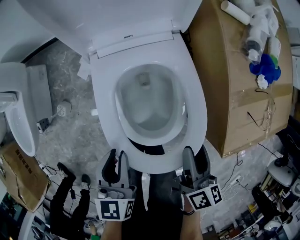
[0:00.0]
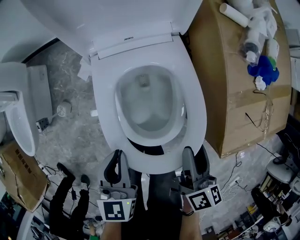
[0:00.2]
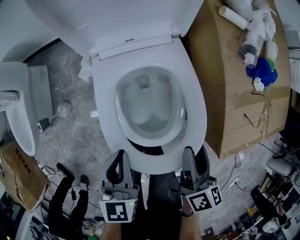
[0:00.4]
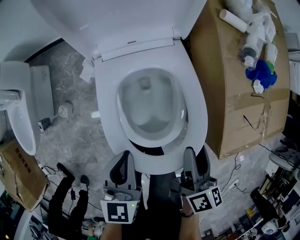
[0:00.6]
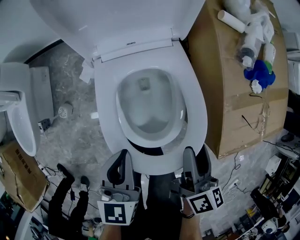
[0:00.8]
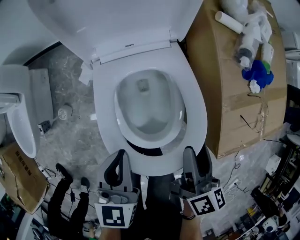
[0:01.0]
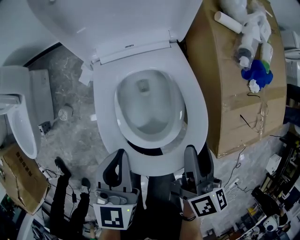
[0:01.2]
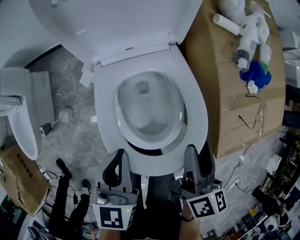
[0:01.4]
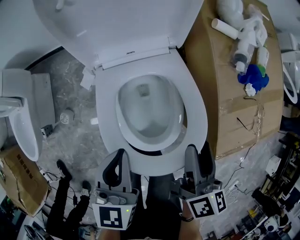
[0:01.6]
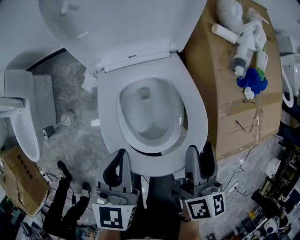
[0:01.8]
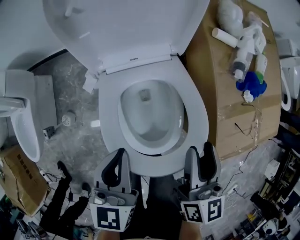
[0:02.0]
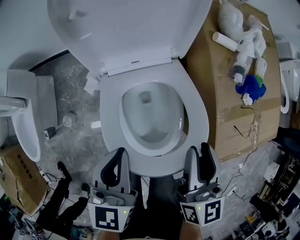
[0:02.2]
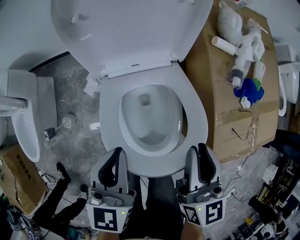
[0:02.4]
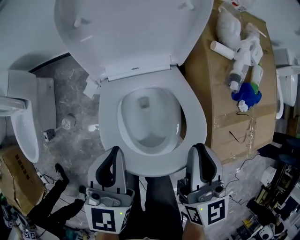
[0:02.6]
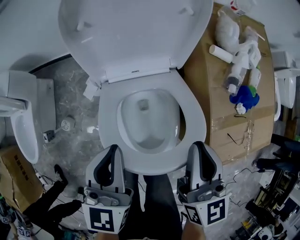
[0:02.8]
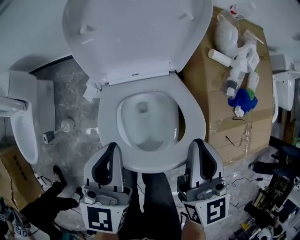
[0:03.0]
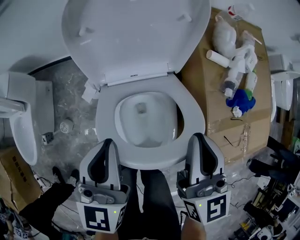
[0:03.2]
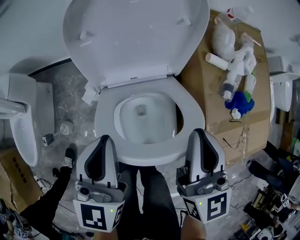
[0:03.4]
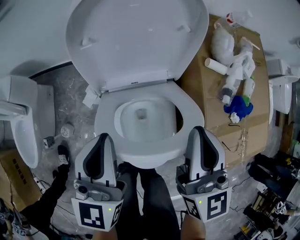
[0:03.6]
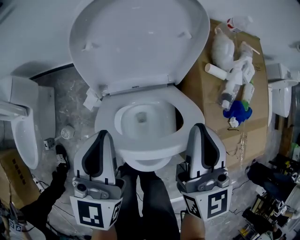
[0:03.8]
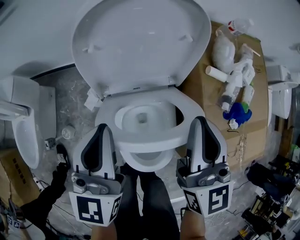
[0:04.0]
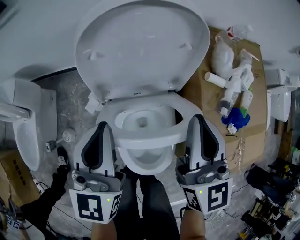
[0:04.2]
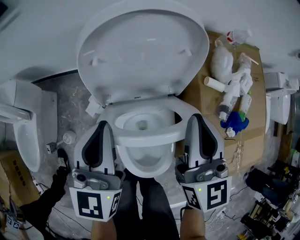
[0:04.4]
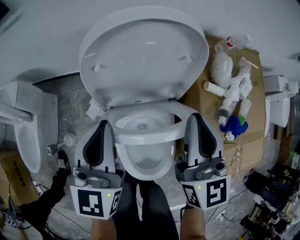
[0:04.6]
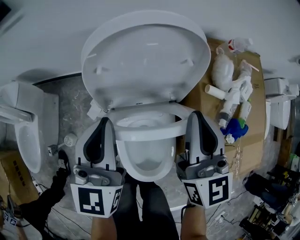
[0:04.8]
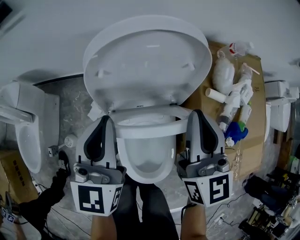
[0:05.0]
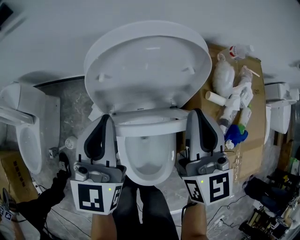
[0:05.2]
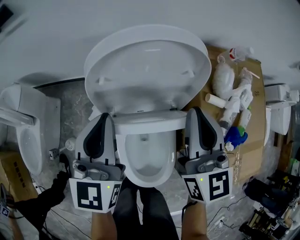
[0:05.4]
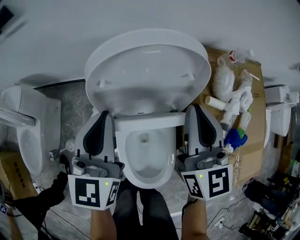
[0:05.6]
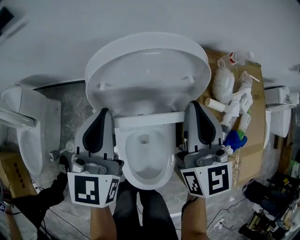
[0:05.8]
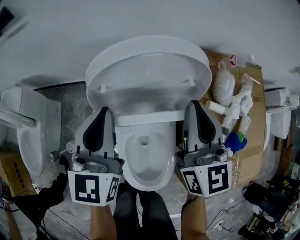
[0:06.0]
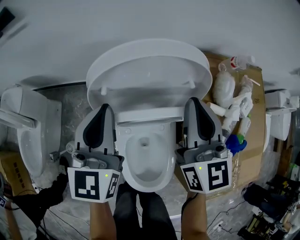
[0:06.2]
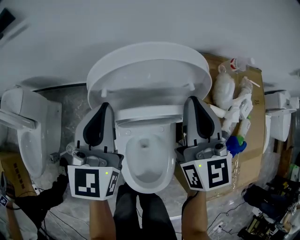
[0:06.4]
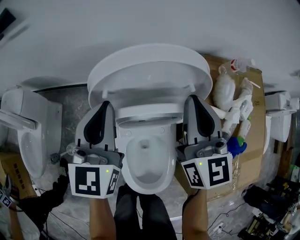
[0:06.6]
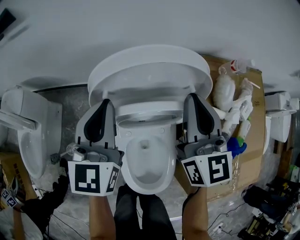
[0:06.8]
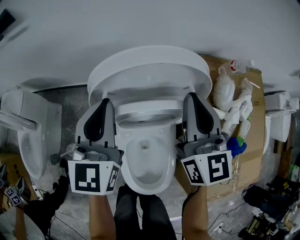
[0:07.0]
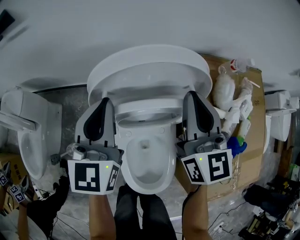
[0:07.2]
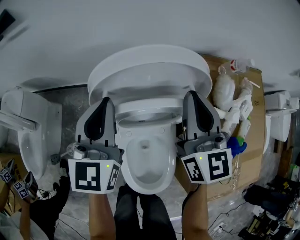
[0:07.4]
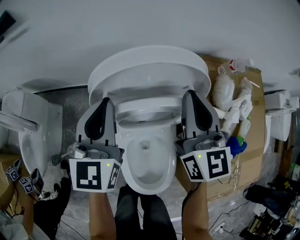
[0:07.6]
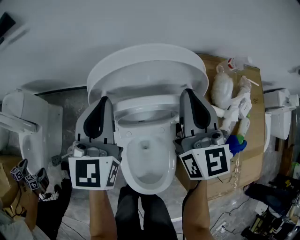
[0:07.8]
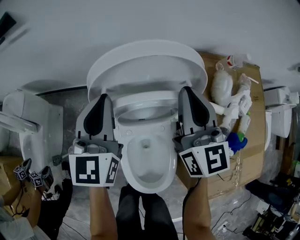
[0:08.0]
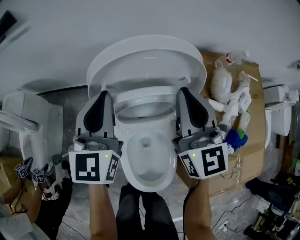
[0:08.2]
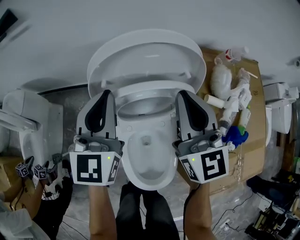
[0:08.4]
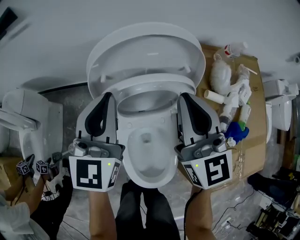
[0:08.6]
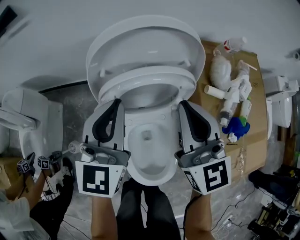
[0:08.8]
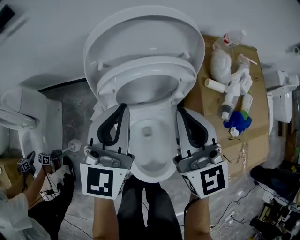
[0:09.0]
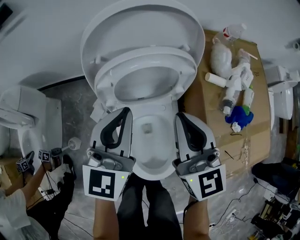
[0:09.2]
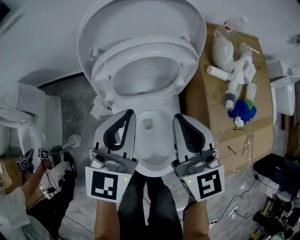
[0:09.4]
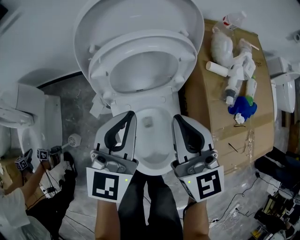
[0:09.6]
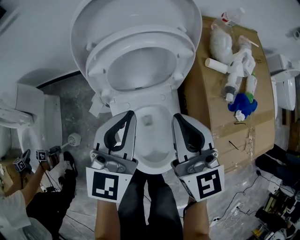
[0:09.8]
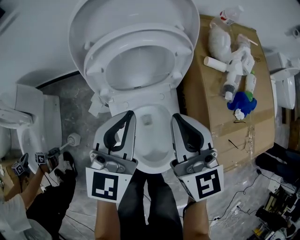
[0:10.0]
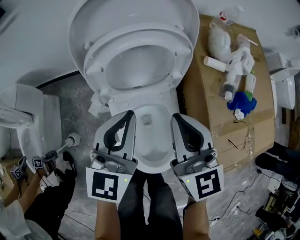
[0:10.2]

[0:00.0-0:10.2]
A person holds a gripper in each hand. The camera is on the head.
0:00.0 to 0:01.4: Both grippers move upward and forward, about 10 cm.
0:01.4 to 0:03.0: The left gripper goes approximately 10 cm upward and forward, while the right gripper travels upward, forward and to the left by approximately 15 cm, changes its angle by approximately 40 degrees, and closes its fingers.
0:03.0 to 0:04.4: Both grippers travel together forward and upward, some 15 cm.
0:04.4 to 0:05.8: Both grippers move forward, roughly 10 cm.
0:05.8 to 0:07.2: The grippers move only a little.
0:07.2 to 0:08.8: The grippers both shift backward by roughly 10 cm.
0:08.8 to 0:10.2: Both grippers travel together backward and downward, some 10 cm.

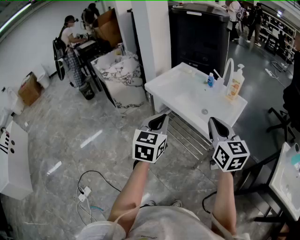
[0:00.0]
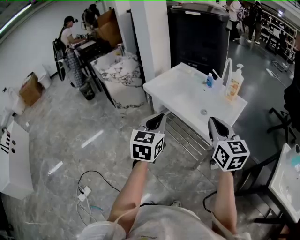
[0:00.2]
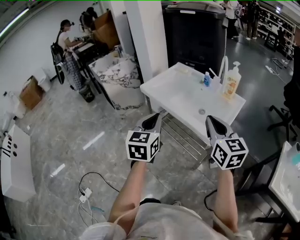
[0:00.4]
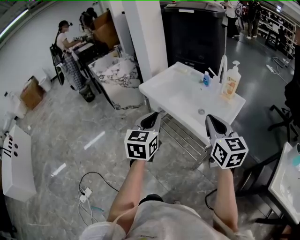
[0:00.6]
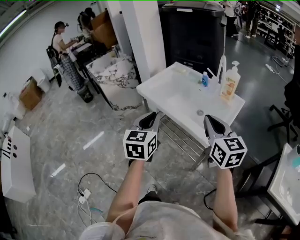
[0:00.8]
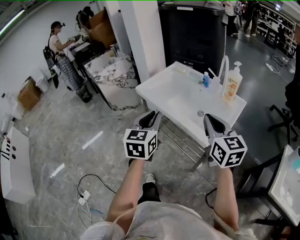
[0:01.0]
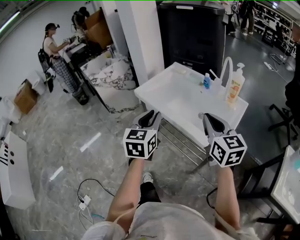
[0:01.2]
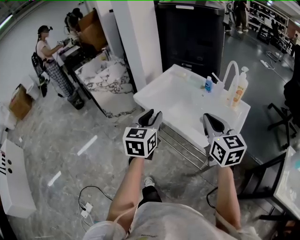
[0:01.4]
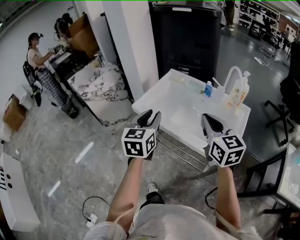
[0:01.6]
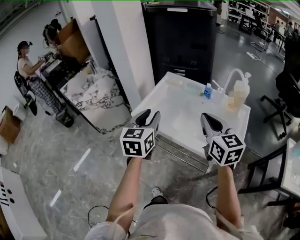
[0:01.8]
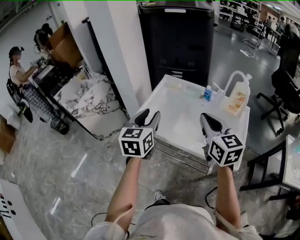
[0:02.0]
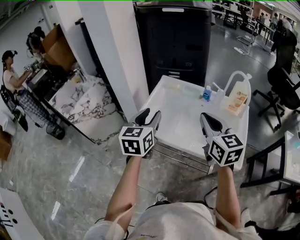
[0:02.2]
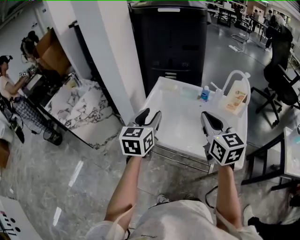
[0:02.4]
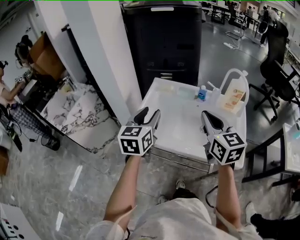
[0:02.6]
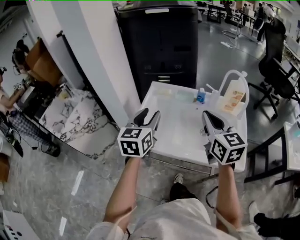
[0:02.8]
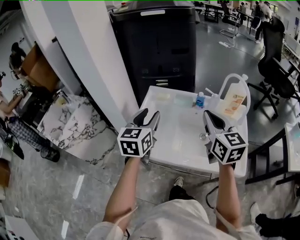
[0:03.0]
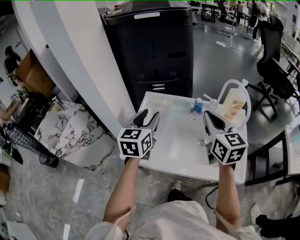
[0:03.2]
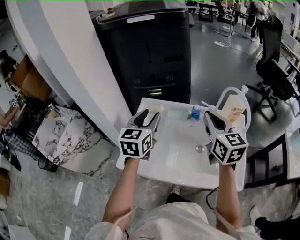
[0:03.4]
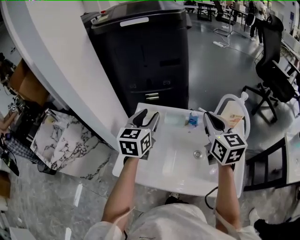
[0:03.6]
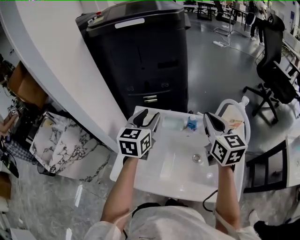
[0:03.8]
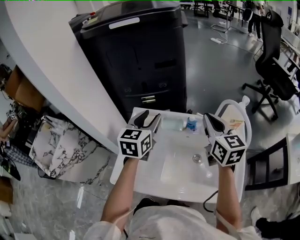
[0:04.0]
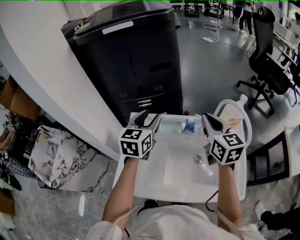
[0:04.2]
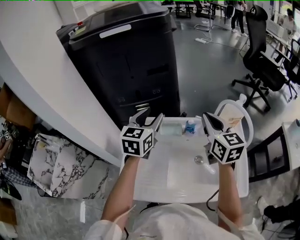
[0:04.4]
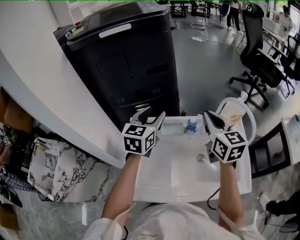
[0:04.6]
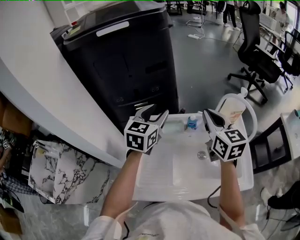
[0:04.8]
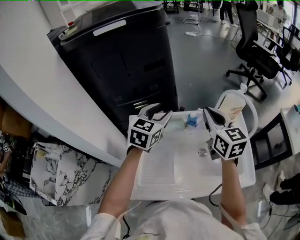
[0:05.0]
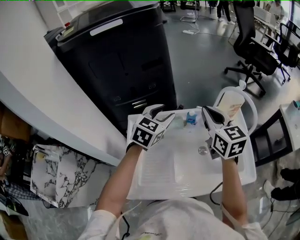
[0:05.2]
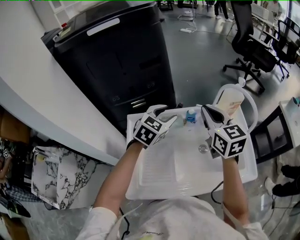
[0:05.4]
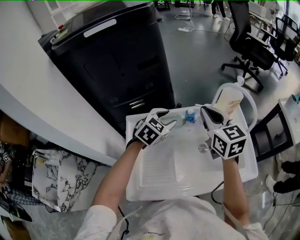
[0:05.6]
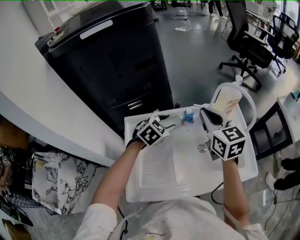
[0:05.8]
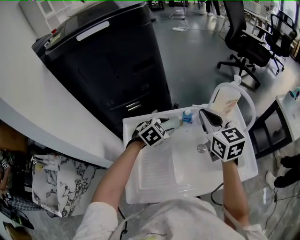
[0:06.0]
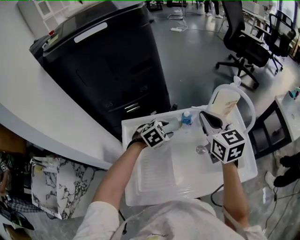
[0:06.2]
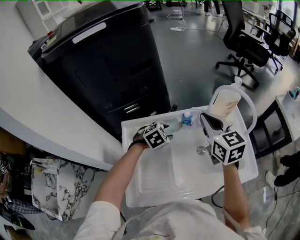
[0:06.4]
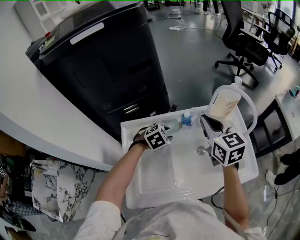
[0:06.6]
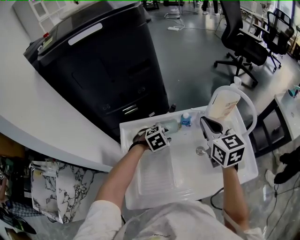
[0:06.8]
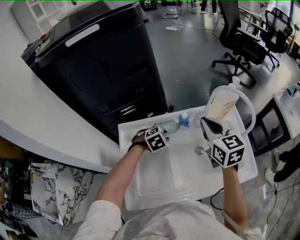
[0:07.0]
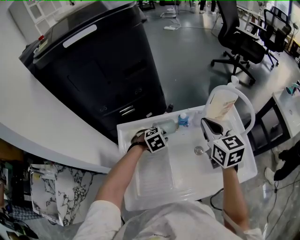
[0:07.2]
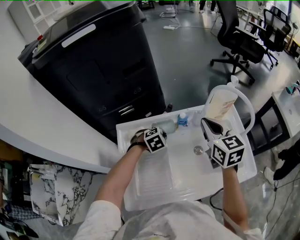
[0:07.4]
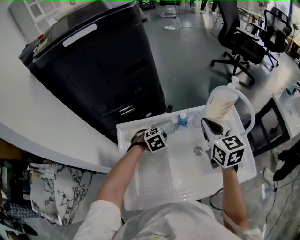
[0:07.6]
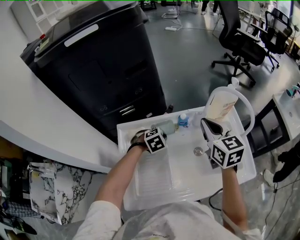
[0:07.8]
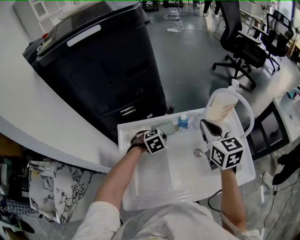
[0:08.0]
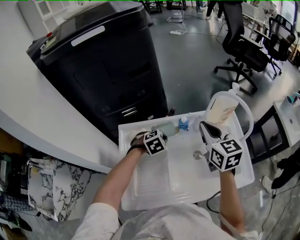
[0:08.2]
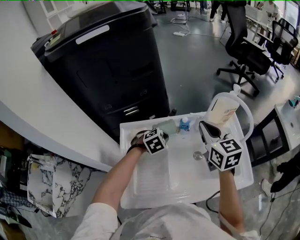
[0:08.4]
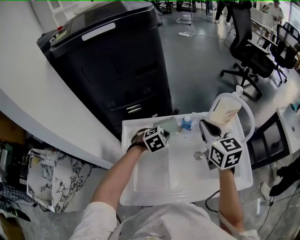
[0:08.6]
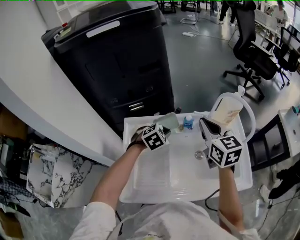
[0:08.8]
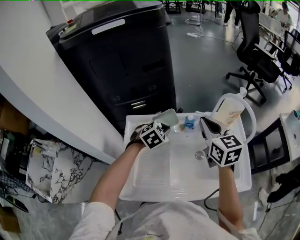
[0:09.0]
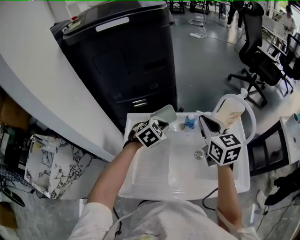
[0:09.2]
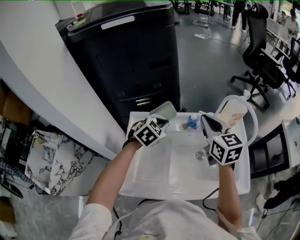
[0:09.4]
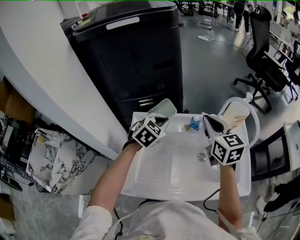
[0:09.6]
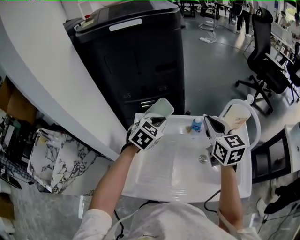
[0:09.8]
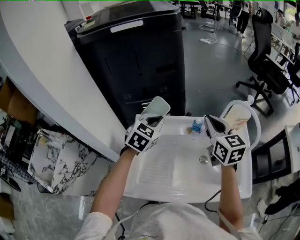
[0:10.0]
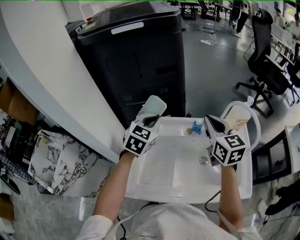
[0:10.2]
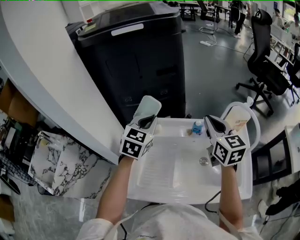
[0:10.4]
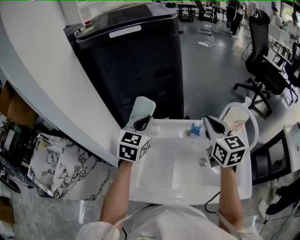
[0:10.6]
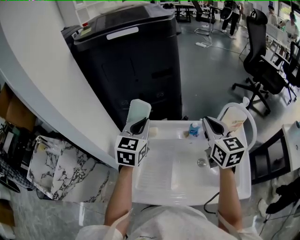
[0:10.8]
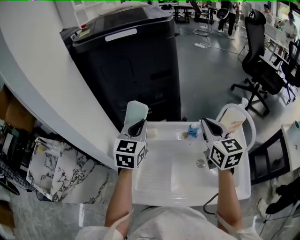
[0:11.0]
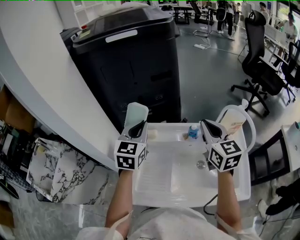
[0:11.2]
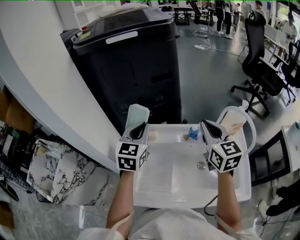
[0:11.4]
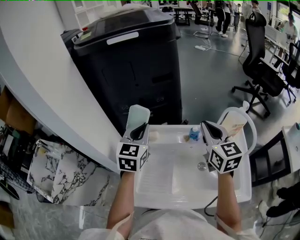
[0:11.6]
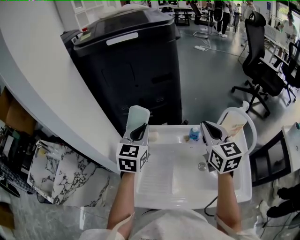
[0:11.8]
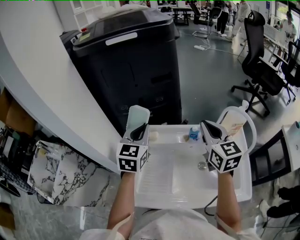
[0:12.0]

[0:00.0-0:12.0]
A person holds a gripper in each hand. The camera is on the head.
0:00.0 to 0:01.6: Both grippers travel together forward, approximately 25 cm. The left gripper opens its fingers.
0:01.6 to 0:03.0: Both grippers travel together forward, about 20 cm. The right gripper swivels approximately 20 degrees. Meanwhile the left gripper changes its angle by some 20 degrees.
0:03.0 to 0:04.4: The two grippers go approximately 20 cm forward.
0:04.4 to 0:06.0: The left gripper travels downward and to the right by roughly 20 cm, and angles its fingers downward, by some 30 degrees.
0:06.0 to 0:07.6: The left gripper is displaced downward by about 10 cm, and closes.
0:07.6 to 0:09.0: The left gripper goes some 10 cm upward, and rotates approximately 20 degrees.
0:09.0 to 0:10.4: The left gripper goes roughly 20 cm upward and to the left, and rotates roughly 40 degrees.
0:10.4 to 0:12.0: The grippers stay close to where they were, moving slightly.

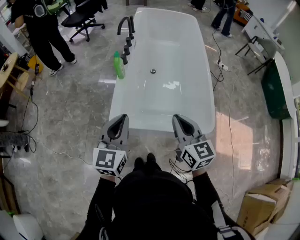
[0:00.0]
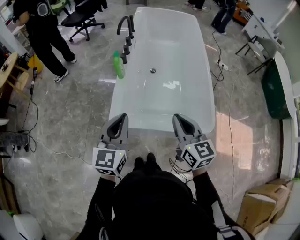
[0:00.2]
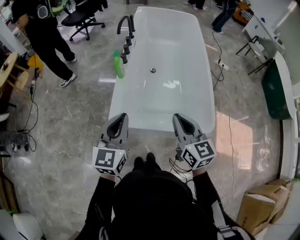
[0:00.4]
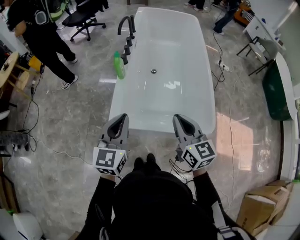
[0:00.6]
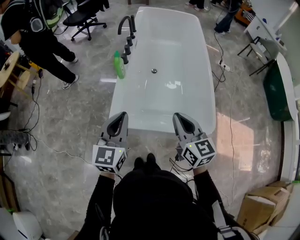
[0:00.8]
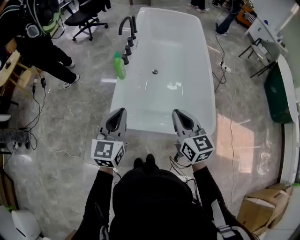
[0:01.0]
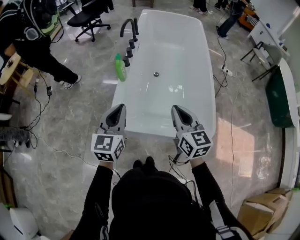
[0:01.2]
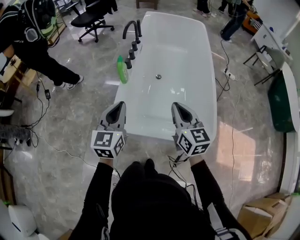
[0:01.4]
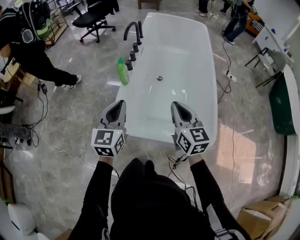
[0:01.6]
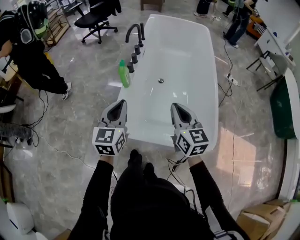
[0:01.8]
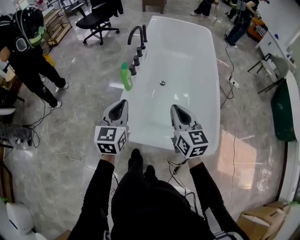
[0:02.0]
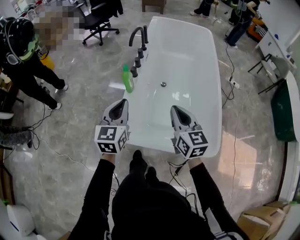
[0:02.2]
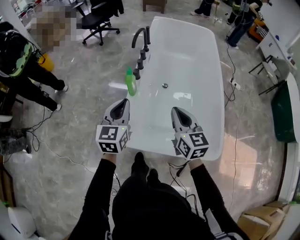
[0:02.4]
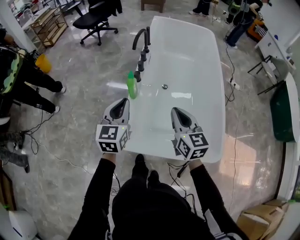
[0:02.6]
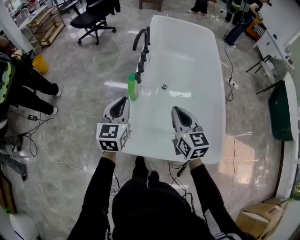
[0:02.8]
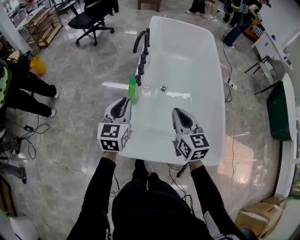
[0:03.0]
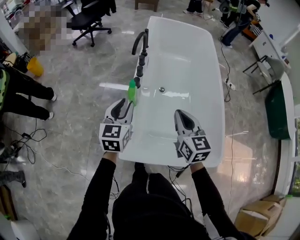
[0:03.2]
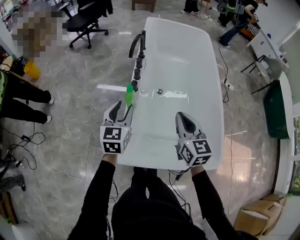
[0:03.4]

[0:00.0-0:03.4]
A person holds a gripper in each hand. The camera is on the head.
0:00.0 to 0:01.6: Both grippers travel together forward, roughly 10 cm.
0:01.6 to 0:03.4: Both grippers travel together forward, about 15 cm. The left gripper opens its fingers.
